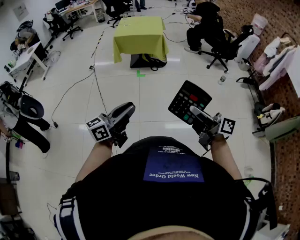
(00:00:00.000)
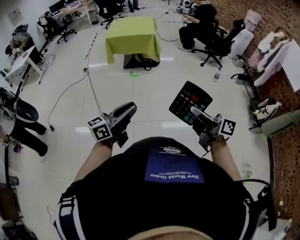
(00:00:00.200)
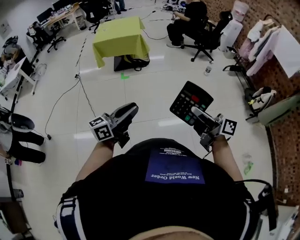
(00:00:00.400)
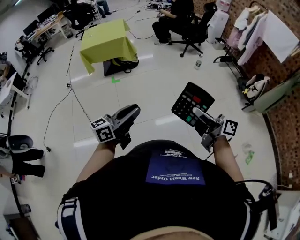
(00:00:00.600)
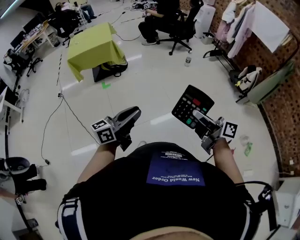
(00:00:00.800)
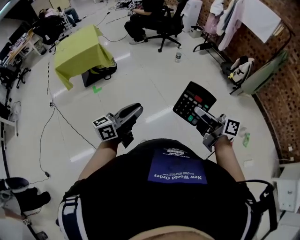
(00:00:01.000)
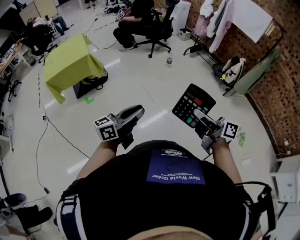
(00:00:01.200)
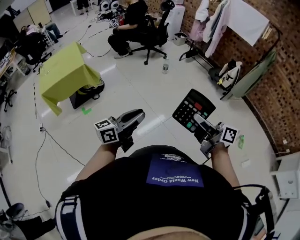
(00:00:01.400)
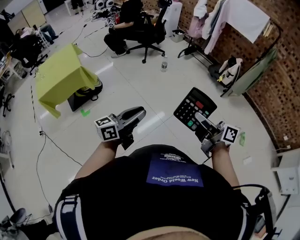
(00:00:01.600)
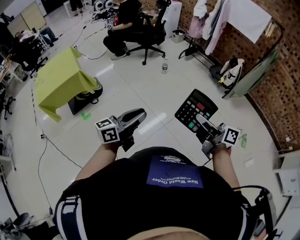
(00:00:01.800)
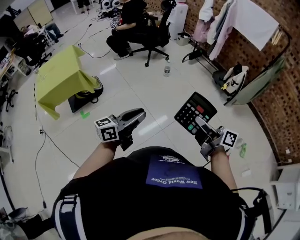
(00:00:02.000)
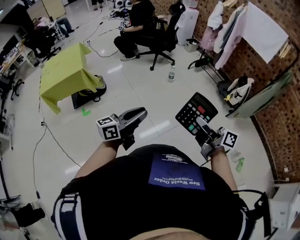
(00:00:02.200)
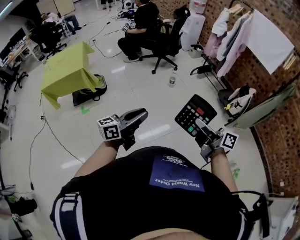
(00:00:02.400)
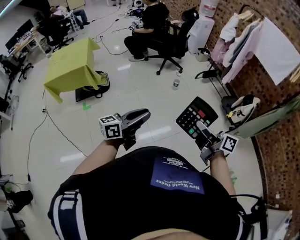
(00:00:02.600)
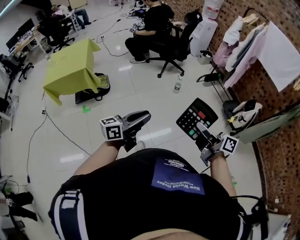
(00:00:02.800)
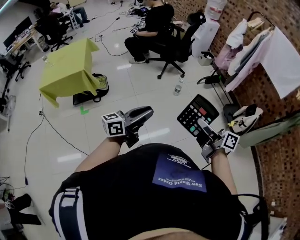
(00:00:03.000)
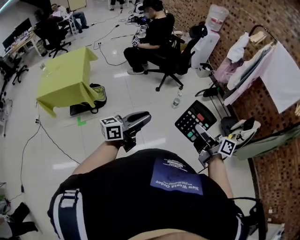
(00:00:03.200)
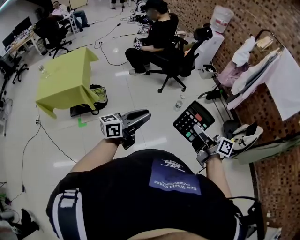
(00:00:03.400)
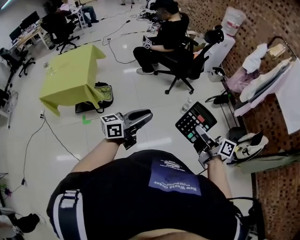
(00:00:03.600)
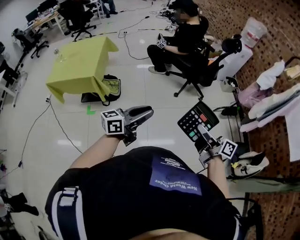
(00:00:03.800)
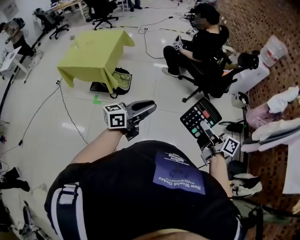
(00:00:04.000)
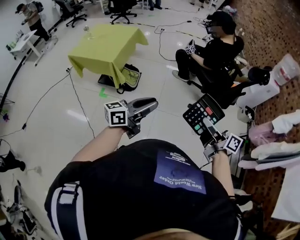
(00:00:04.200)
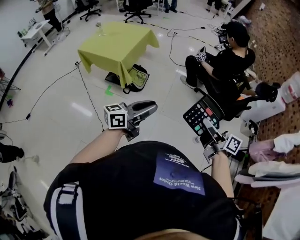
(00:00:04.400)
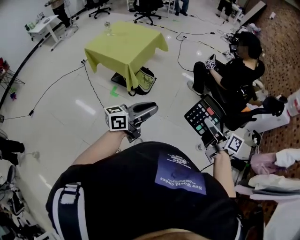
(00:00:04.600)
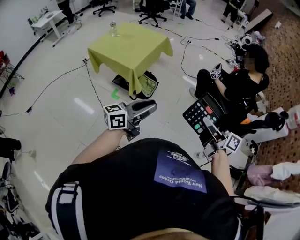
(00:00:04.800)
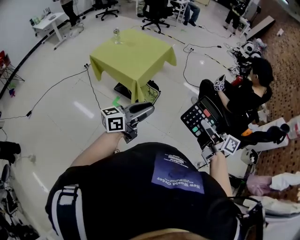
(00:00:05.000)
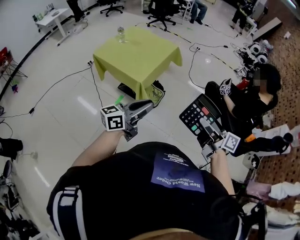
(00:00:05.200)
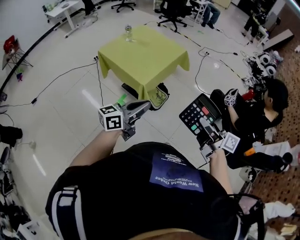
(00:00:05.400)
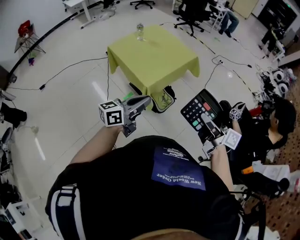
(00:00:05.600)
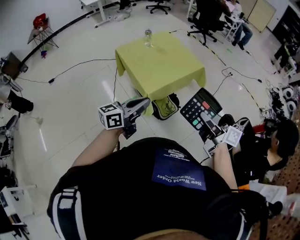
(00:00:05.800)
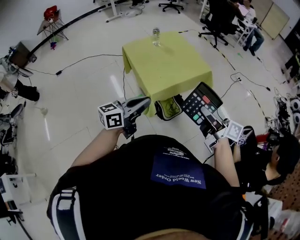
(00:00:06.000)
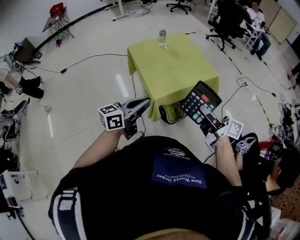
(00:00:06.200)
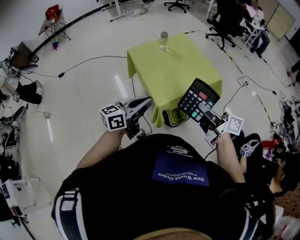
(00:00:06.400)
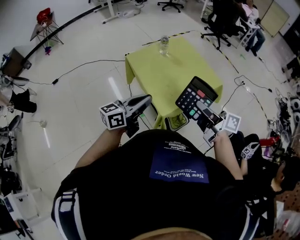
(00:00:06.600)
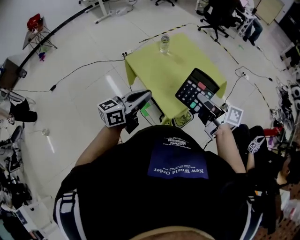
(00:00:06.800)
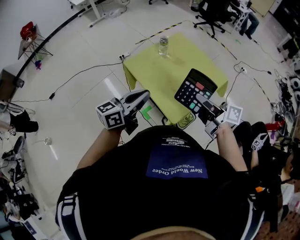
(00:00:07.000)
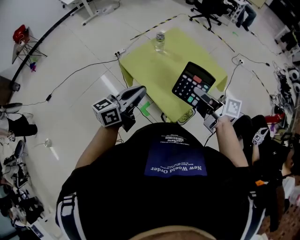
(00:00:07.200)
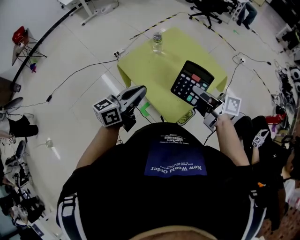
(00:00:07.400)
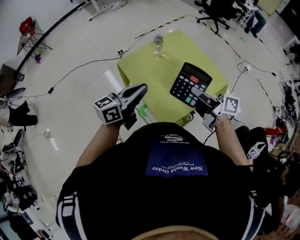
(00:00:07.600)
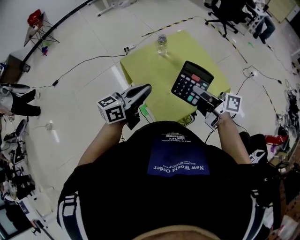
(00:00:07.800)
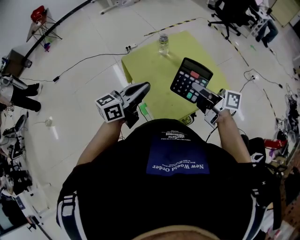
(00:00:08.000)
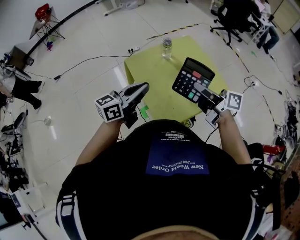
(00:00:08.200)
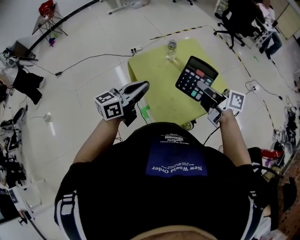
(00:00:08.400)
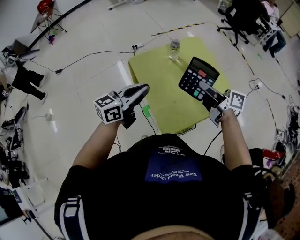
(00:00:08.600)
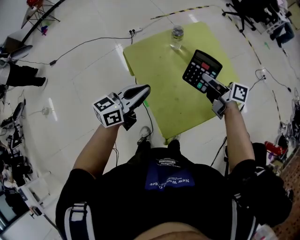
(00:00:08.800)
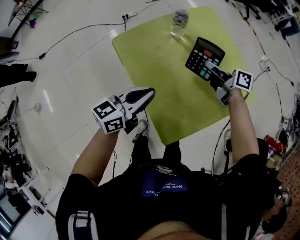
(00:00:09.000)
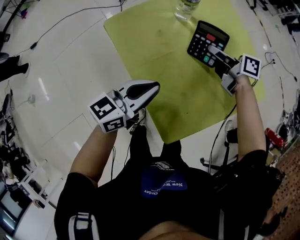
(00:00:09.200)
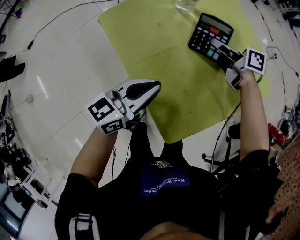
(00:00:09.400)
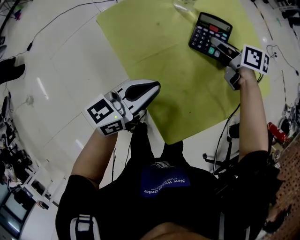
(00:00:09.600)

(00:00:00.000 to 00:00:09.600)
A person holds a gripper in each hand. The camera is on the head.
00:00:00.000 - 00:00:01.600: The right gripper changes place by approximately 40 cm, and rotates some 40 degrees. Meanwhile the left gripper ends up some 50 cm from where it was, and turns by roughly 40 degrees.
00:00:01.600 - 00:00:03.200: The two grippers travel together, forward, approximately 50 cm.
00:00:03.200 - 00:00:04.800: The left gripper shifts by about 40 cm, and swivels some 50 degrees. The right gripper ends up some 50 cm from where it was, and changes its angle by approximately 40 degrees.
00:00:04.800 - 00:00:06.400: The two grippers travel together, roughly 50 cm. The left gripper swivels some 40 degrees, and closes up; the right gripper turns by about 40 degrees.
00:00:06.400 - 00:00:08.000: The two grippers go roughly 30 cm forward.
00:00:08.000 - 00:00:09.600: The grippers both shift downward and forward by some 40 cm. The right gripper angles its fingers downward, by about 40 degrees, and opens.

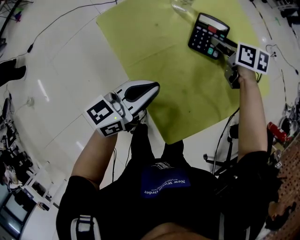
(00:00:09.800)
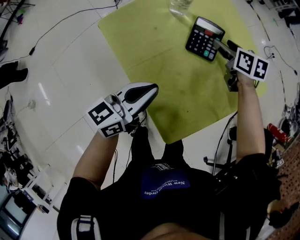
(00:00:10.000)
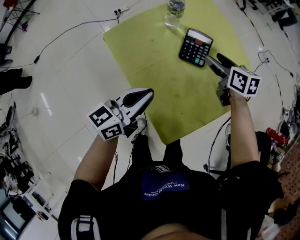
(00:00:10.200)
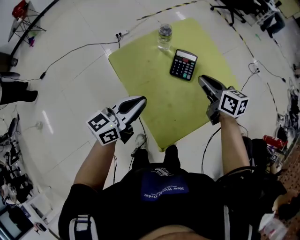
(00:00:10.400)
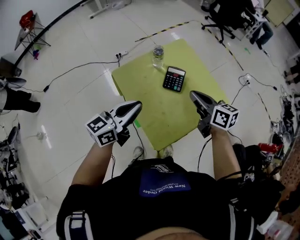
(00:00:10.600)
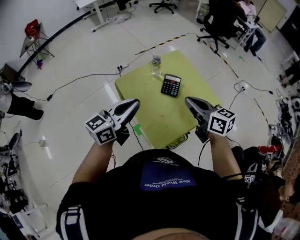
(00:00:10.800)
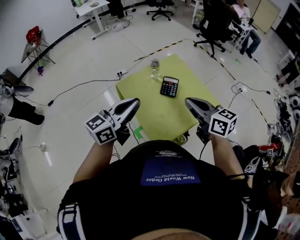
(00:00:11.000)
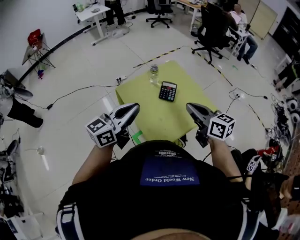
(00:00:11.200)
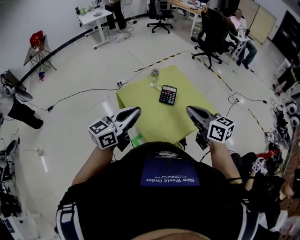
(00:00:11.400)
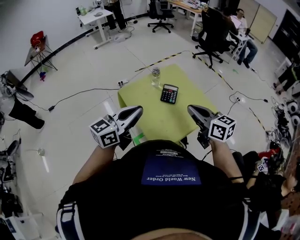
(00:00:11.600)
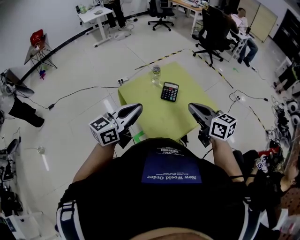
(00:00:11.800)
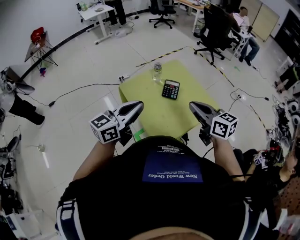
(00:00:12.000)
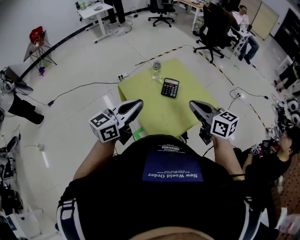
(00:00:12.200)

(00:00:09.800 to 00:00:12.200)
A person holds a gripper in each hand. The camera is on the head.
00:00:09.800 - 00:00:11.000: The grippers both shift upward and backward by about 40 cm. The right gripper tips its fingers upward by roughly 40 degrees, and closes its fingers. The left gripper swivels some 20 degrees.
00:00:11.000 - 00:00:12.200: The grippers stay close to where they were, moving slightly.

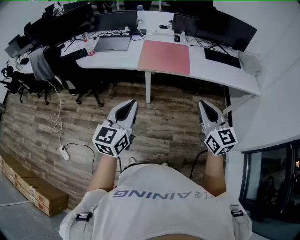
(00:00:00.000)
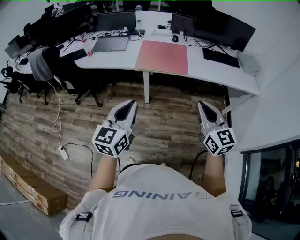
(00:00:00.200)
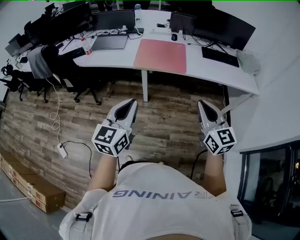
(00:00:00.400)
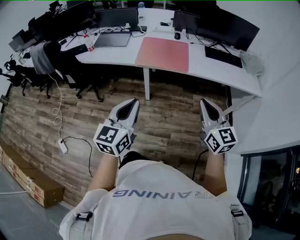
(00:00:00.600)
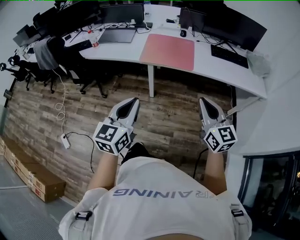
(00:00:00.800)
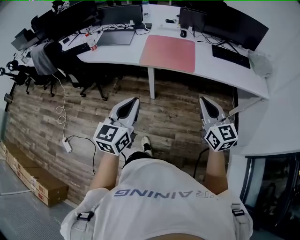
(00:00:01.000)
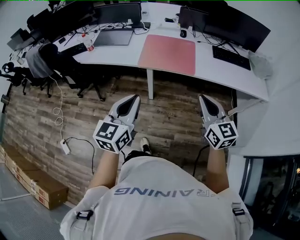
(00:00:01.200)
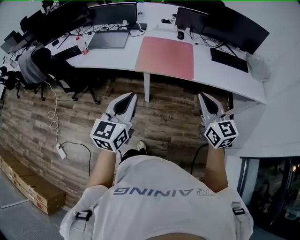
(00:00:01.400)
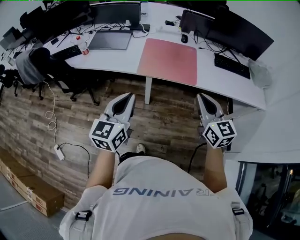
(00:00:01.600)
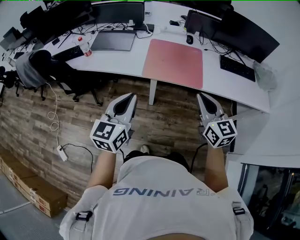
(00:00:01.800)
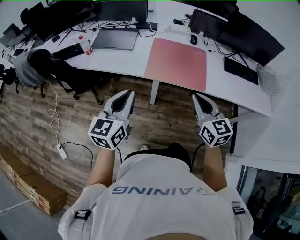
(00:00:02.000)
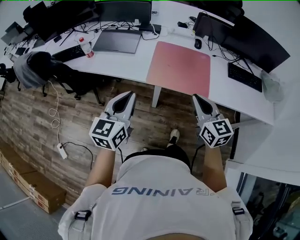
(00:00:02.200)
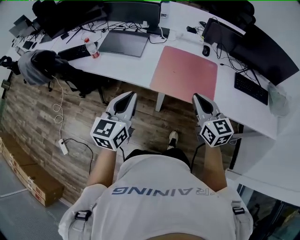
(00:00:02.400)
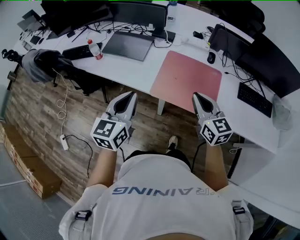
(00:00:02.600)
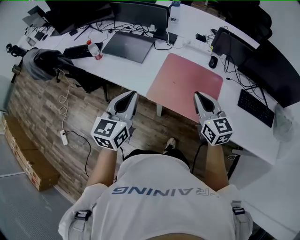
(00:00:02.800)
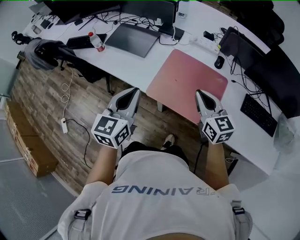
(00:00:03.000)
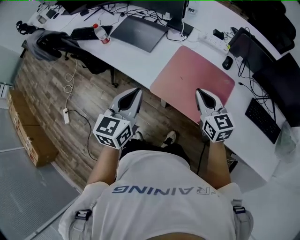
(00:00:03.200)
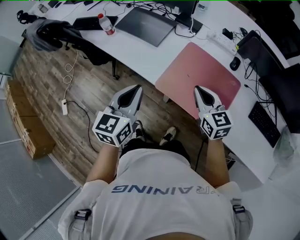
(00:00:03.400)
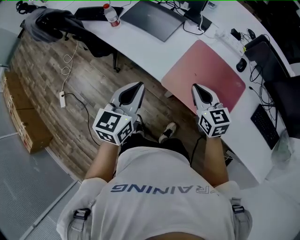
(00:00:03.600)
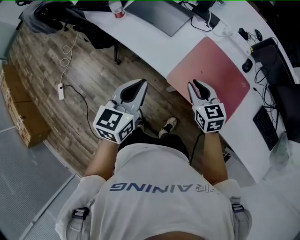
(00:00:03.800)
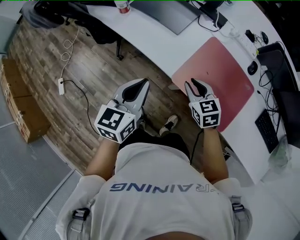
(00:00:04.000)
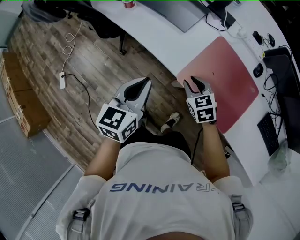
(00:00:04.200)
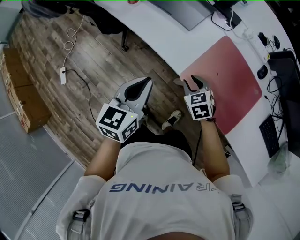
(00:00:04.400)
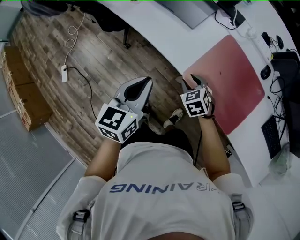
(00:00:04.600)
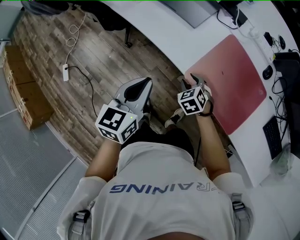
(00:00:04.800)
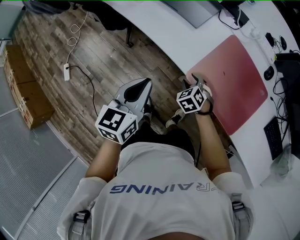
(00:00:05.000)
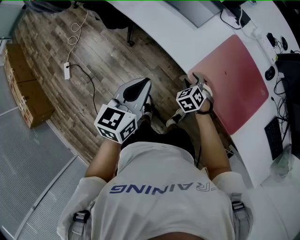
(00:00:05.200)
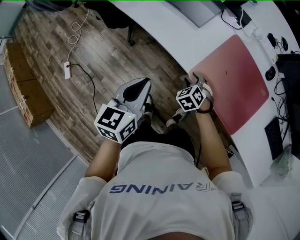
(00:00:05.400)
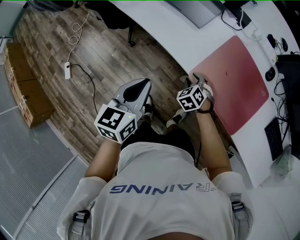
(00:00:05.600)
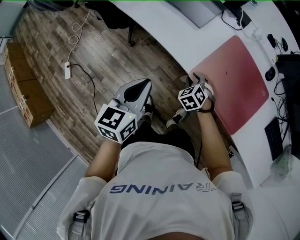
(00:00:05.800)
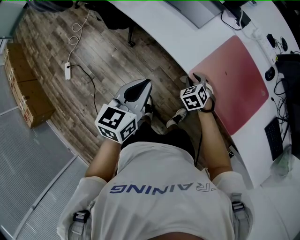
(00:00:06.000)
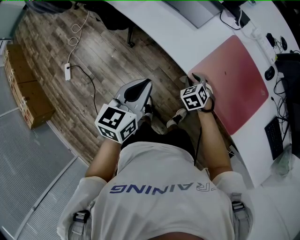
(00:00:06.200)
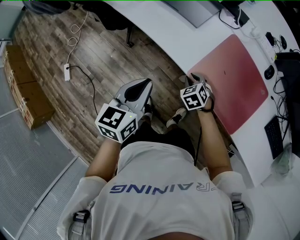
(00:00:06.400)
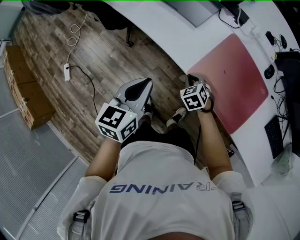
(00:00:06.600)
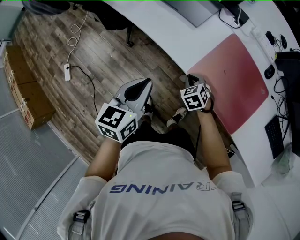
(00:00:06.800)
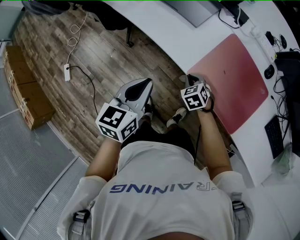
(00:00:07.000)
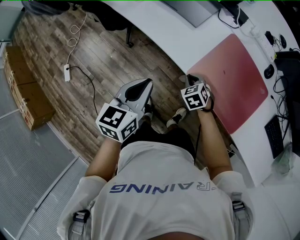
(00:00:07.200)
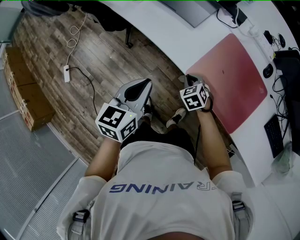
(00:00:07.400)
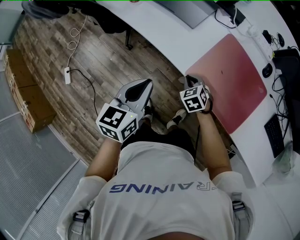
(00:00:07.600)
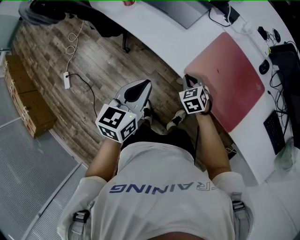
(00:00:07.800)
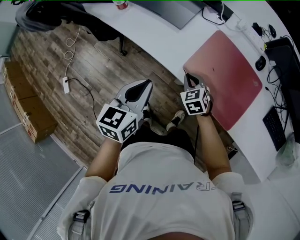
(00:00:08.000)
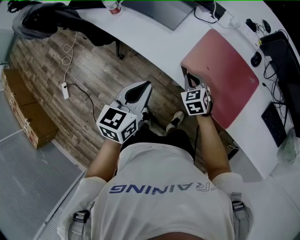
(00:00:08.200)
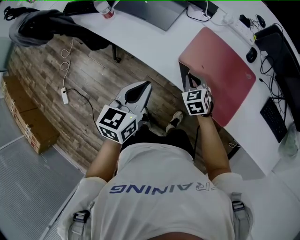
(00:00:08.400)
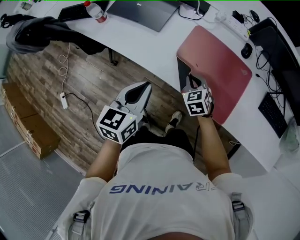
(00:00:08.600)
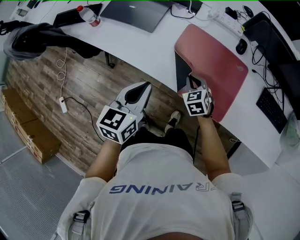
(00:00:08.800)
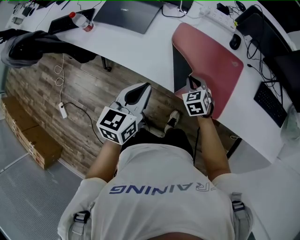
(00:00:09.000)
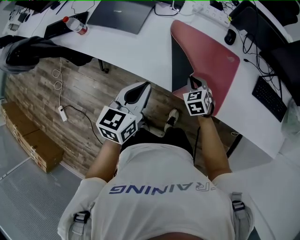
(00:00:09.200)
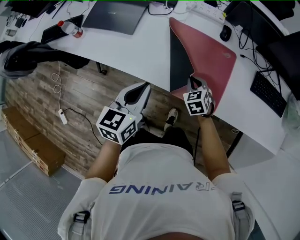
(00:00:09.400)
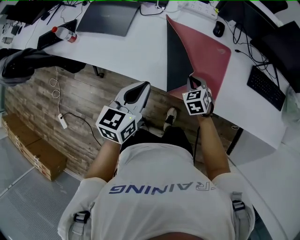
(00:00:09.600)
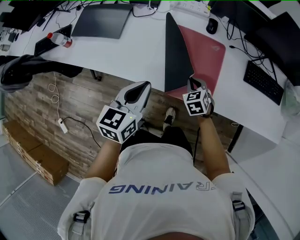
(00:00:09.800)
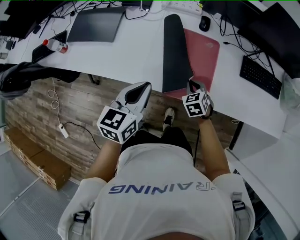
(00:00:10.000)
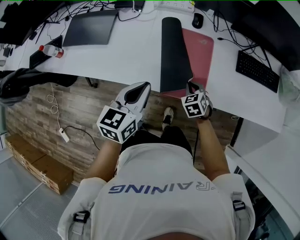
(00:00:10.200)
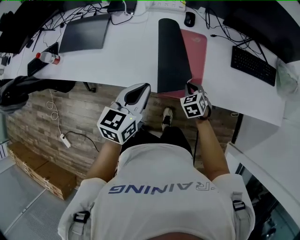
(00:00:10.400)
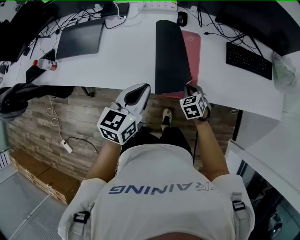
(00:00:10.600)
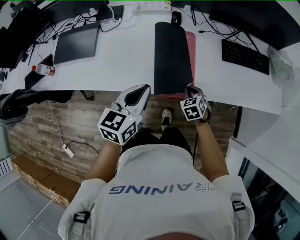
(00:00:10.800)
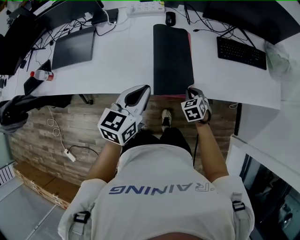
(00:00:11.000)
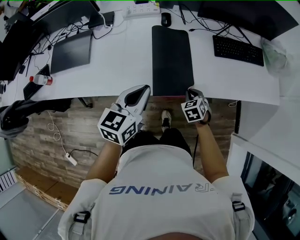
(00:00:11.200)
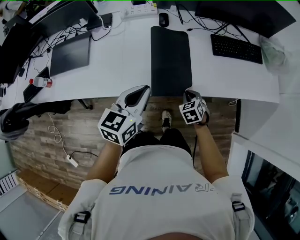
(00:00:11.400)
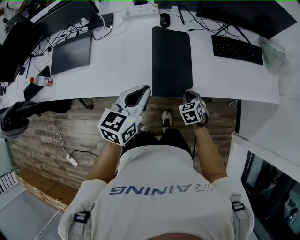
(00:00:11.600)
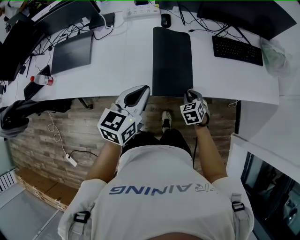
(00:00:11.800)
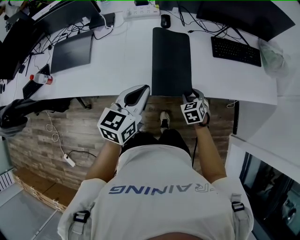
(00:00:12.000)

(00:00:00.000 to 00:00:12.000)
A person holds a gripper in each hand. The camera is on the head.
00:00:00.000 - 00:00:01.600: Both grippers move forward, some 20 cm.
00:00:01.600 - 00:00:03.000: The grippers both shift forward by about 25 cm. The left gripper rotates approximately 20 degrees; the right gripper changes its angle by roughly 20 degrees.
00:00:03.000 - 00:00:04.400: The left gripper shifts approximately 20 cm to the left and downward. Meanwhile the right gripper travels downward and to the left by approximately 30 cm, tips its fingers downward by some 40 degrees, and opens.
00:00:04.400 - 00:00:06.000: The right gripper is displaced downward by approximately 10 cm.
00:00:06.000 - 00:00:07.600: The right gripper closes up.
00:00:07.600 - 00:00:09.000: The two grippers go some 15 cm to the right. The right gripper turns by approximately 20 degrees.
00:00:09.000 - 00:00:10.400: Both grippers move to the right, some 15 cm.
00:00:10.400 - 00:00:12.000: The left gripper goes approximately 5 cm to the right. Meanwhile the right gripper moves to the right, about 10 cm, and opens its fingers.
